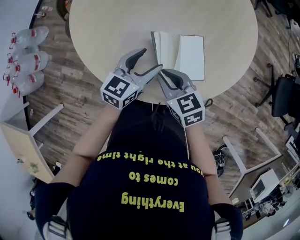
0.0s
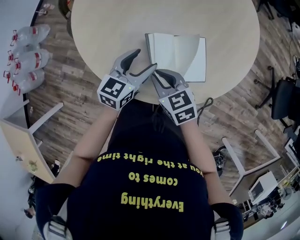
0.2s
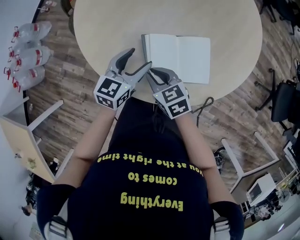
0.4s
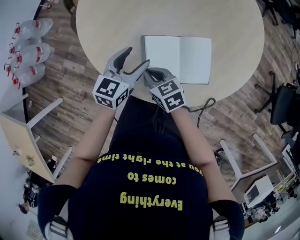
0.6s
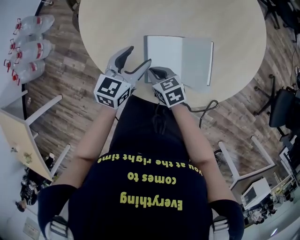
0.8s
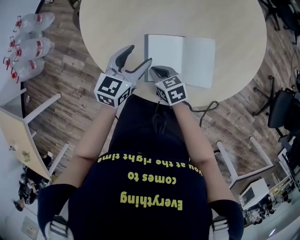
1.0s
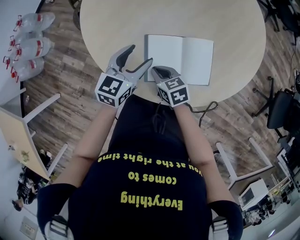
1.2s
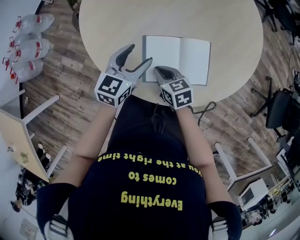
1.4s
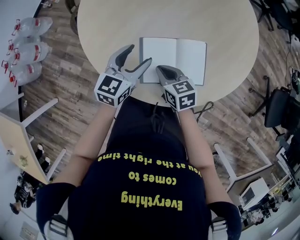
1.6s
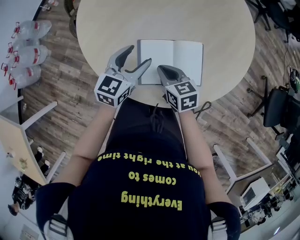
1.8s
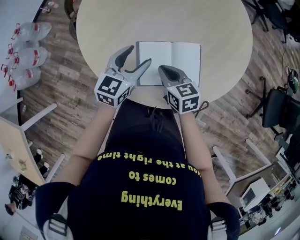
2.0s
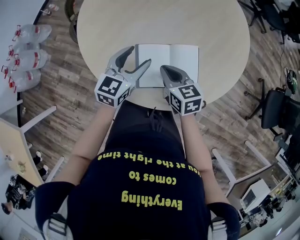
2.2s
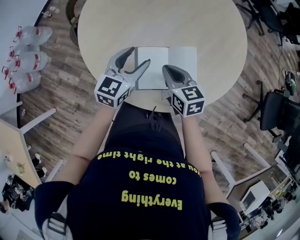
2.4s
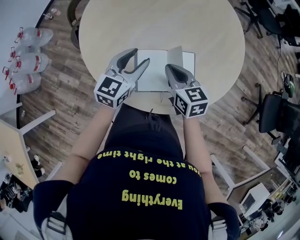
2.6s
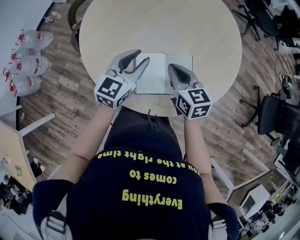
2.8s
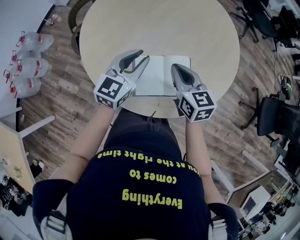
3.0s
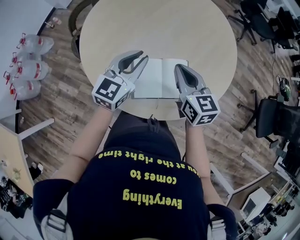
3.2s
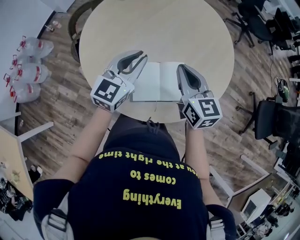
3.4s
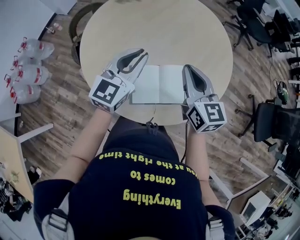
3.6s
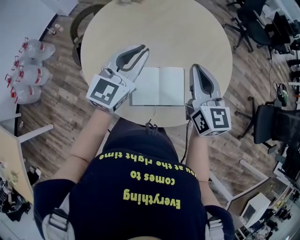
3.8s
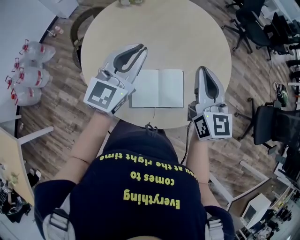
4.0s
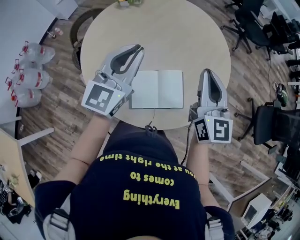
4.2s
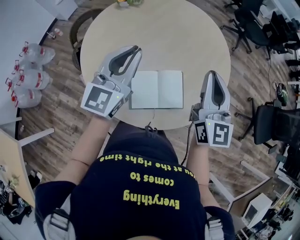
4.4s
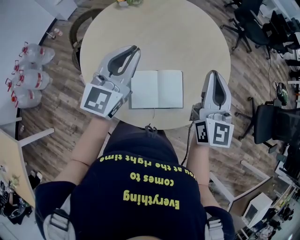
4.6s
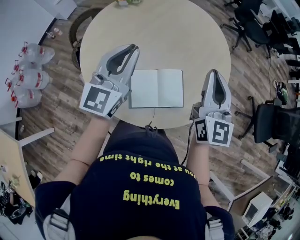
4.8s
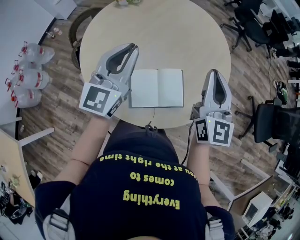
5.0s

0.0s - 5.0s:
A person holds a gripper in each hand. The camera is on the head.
0.0s - 1.6s: The right gripper goes roughly 5 cm downward. The left gripper is displaced to the left by about 5 cm.
1.6s - 3.4s: The right gripper is displaced upward and to the right by roughly 25 cm, and rotates roughly 30 degrees. Meanwhile the left gripper moves upward, approximately 15 cm, and closes its fingers.
3.4s - 5.0s: The right gripper moves upward and to the right, roughly 15 cm, and changes its angle by approximately 30 degrees. Meanwhile the left gripper goes some 10 cm upward.

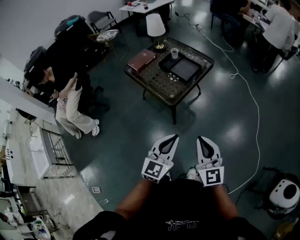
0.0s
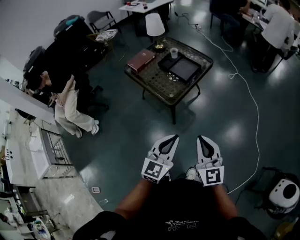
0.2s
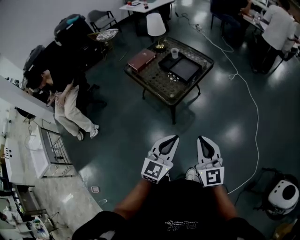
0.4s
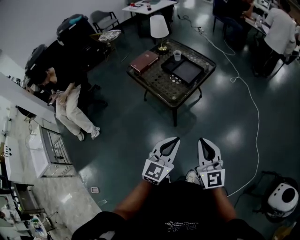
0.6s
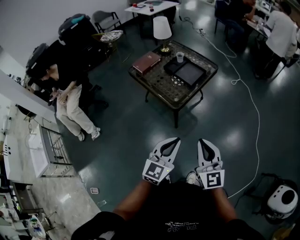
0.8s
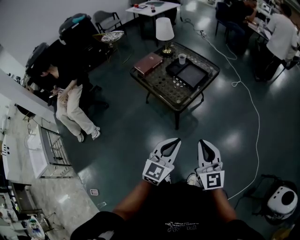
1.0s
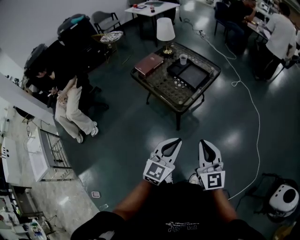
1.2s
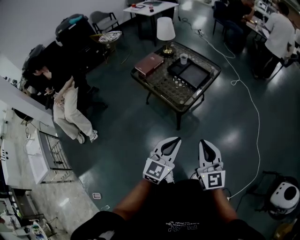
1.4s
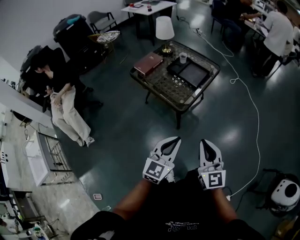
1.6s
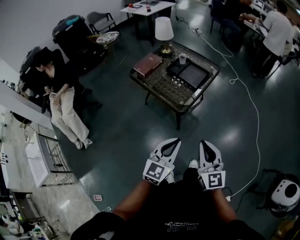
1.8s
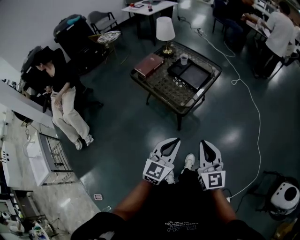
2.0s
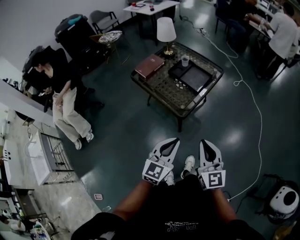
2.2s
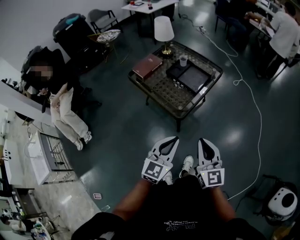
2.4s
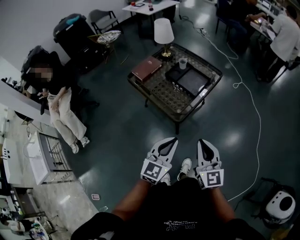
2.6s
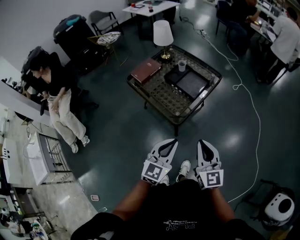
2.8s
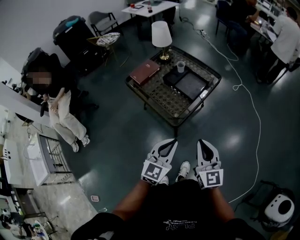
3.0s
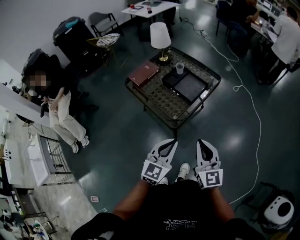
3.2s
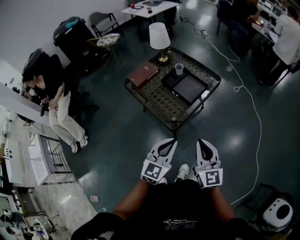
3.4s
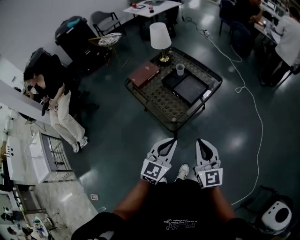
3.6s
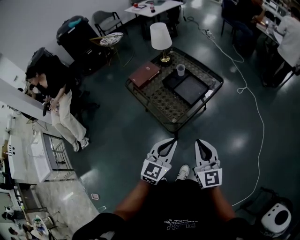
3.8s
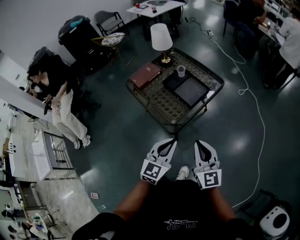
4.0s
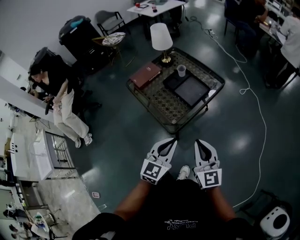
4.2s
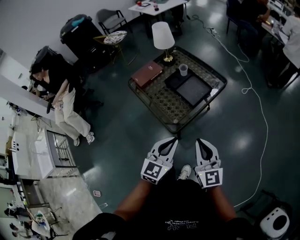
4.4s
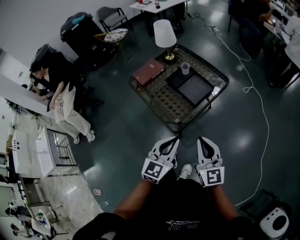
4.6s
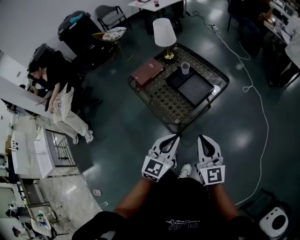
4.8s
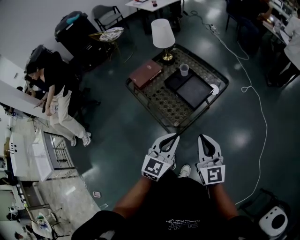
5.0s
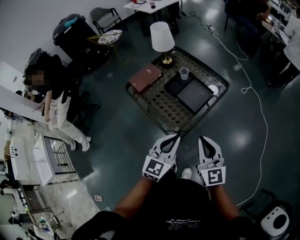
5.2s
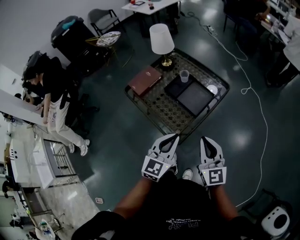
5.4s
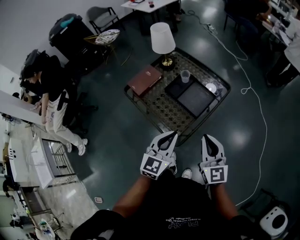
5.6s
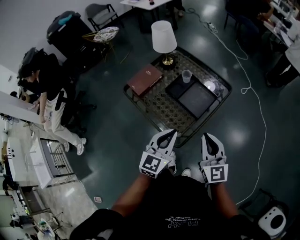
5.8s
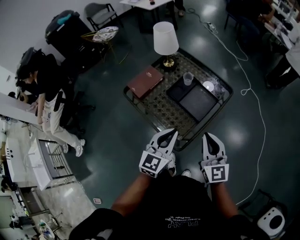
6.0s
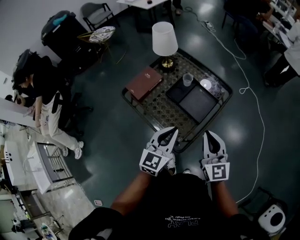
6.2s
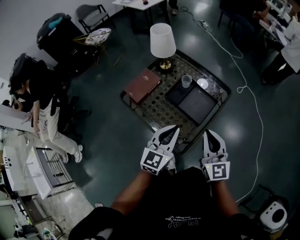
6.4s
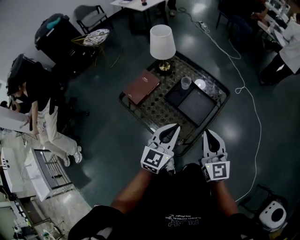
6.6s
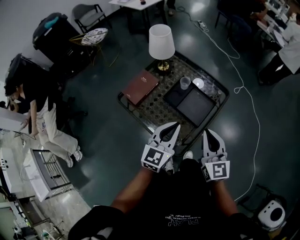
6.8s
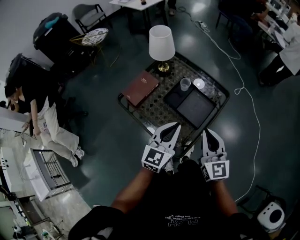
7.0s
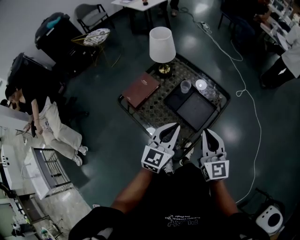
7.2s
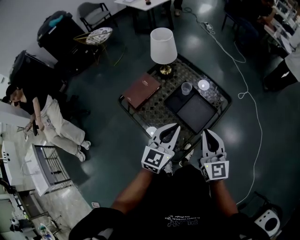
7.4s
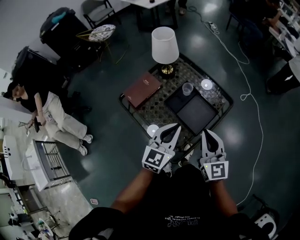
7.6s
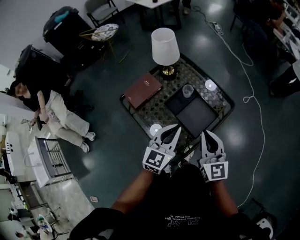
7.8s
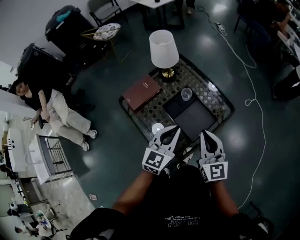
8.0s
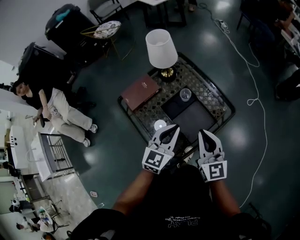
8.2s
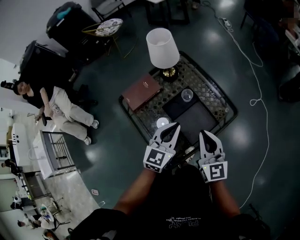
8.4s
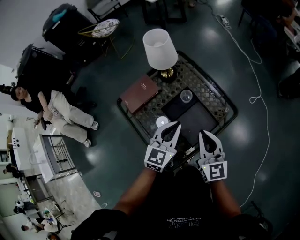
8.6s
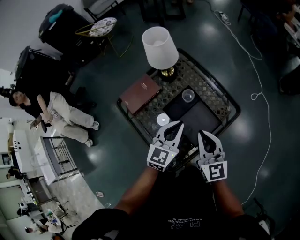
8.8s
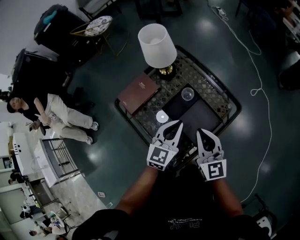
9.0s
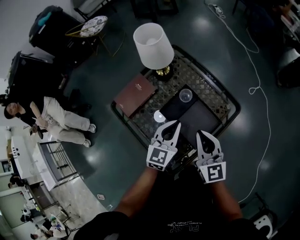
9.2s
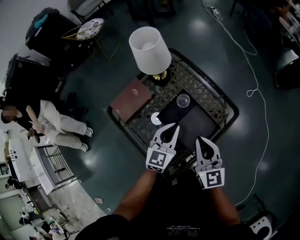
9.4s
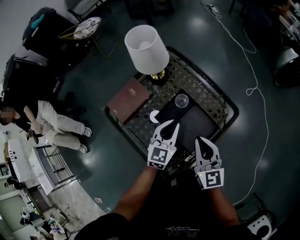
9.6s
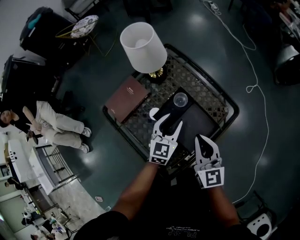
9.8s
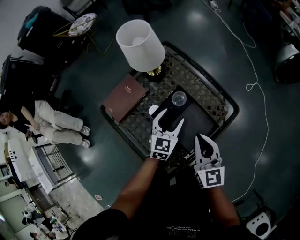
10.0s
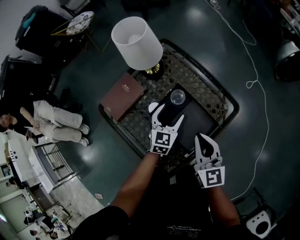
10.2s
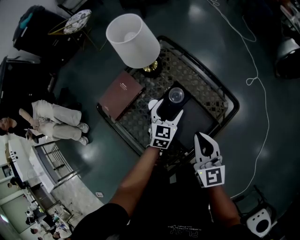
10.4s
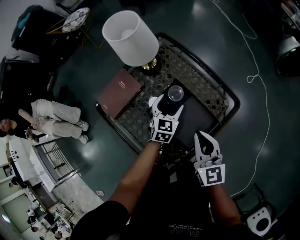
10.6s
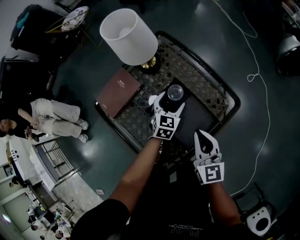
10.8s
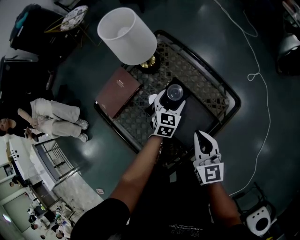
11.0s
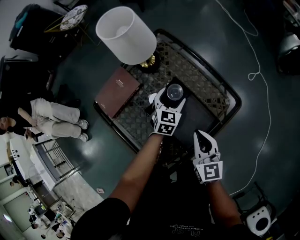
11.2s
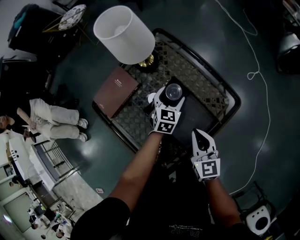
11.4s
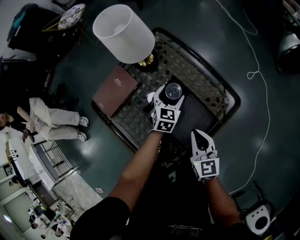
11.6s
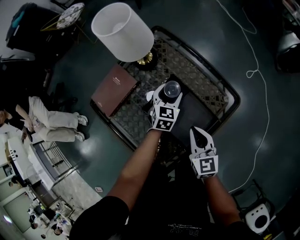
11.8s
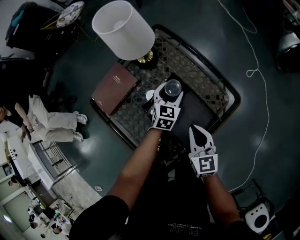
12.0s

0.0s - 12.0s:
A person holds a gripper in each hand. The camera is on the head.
0.0s - 1.6s: Both grippers travel together to the left, roughly 10 cm.
1.6s - 3.0s: Both grippers move forward, roughly 10 cm.
3.0s - 4.4s: The two grippers go roughly 5 cm forward.
4.4s - 6.0s: The right gripper moves forward, about 15 cm; the left gripper is displaced forward and to the left by about 20 cm.
6.0s - 7.6s: The two grippers go about 10 cm forward.
7.6s - 9.0s: Both grippers travel together forward and downward, some 15 cm.
9.0s - 10.4s: The right gripper shifts approximately 5 cm downward, while the left gripper is displaced downward and forward by approximately 20 cm, and opens its fingers.
10.4s - 12.0s: The right gripper moves downward, some 10 cm; the left gripper changes place by approximately 5 cm.

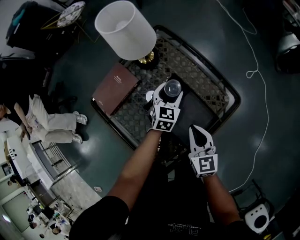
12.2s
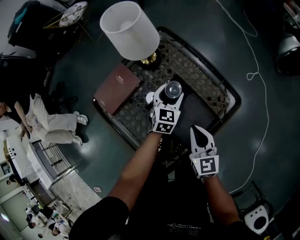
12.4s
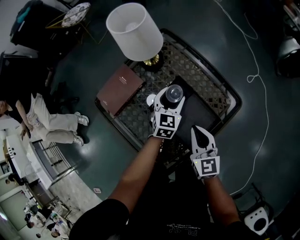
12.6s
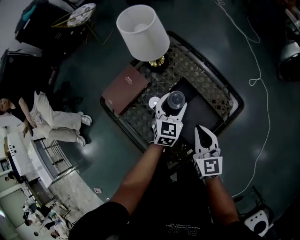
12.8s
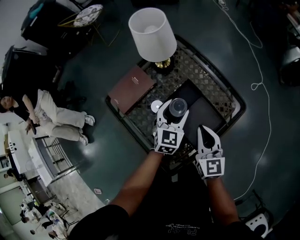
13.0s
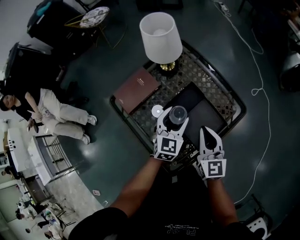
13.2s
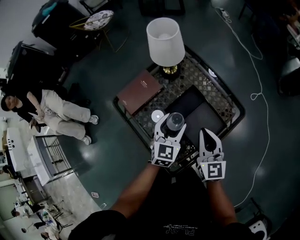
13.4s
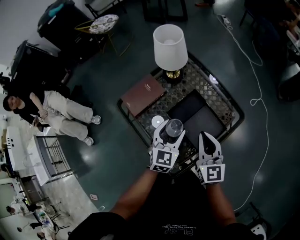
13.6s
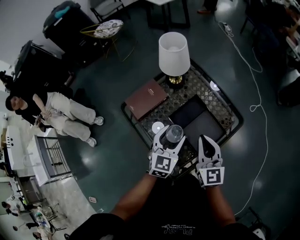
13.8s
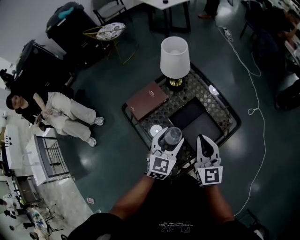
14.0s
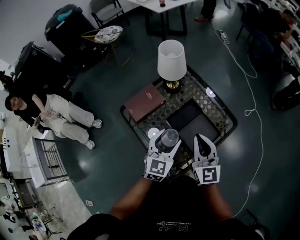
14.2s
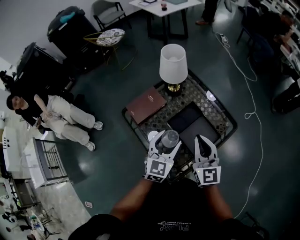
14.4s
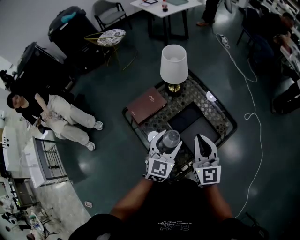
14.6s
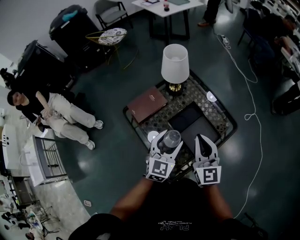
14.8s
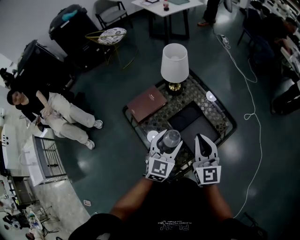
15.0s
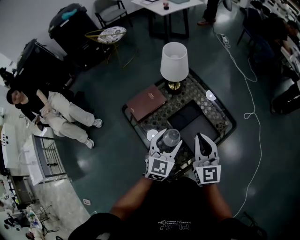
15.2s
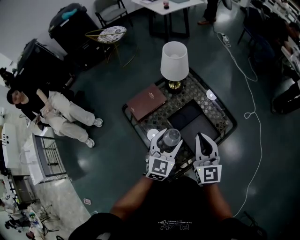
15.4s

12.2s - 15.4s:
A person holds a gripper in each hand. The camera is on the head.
12.2s - 13.8s: The left gripper goes approximately 25 cm upward, backward and to the left. The right gripper goes approximately 15 cm upward.
13.8s - 15.4s: The two grippers go roughly 5 cm upward.

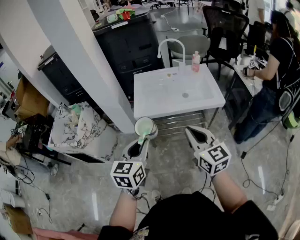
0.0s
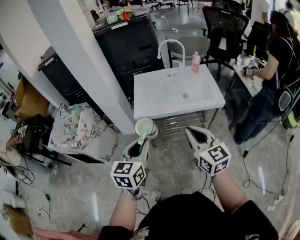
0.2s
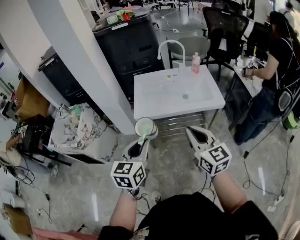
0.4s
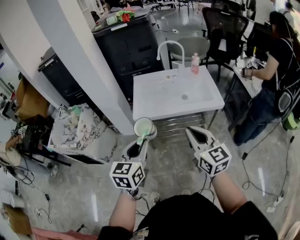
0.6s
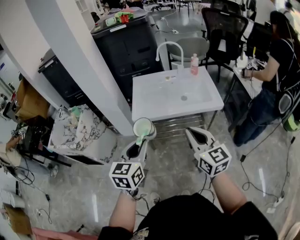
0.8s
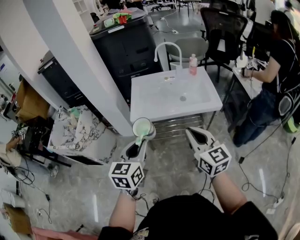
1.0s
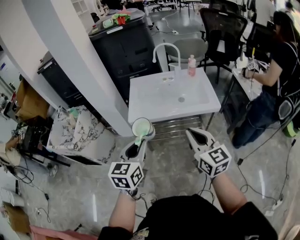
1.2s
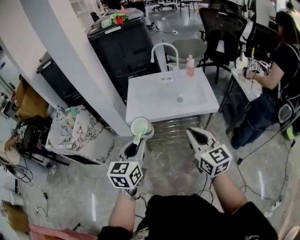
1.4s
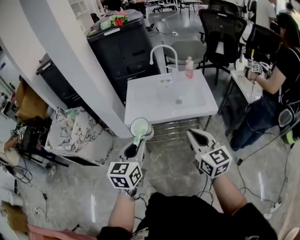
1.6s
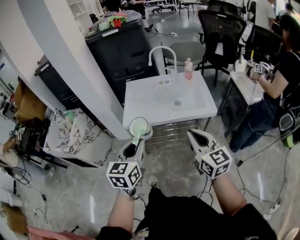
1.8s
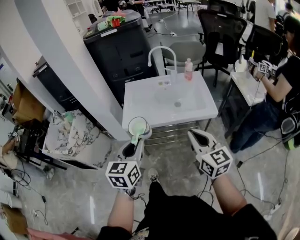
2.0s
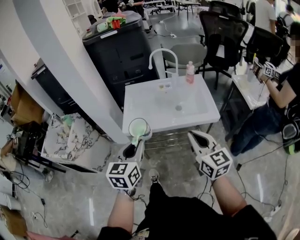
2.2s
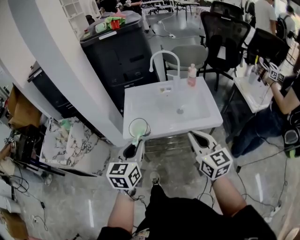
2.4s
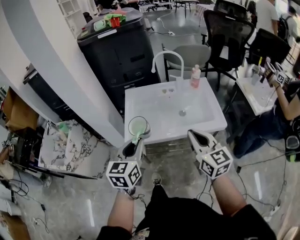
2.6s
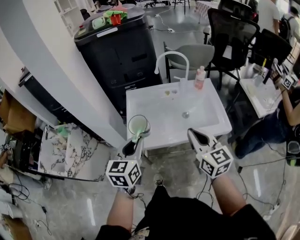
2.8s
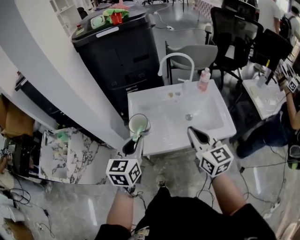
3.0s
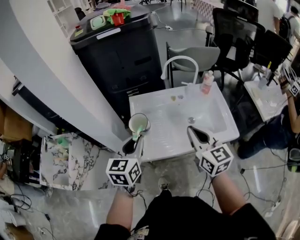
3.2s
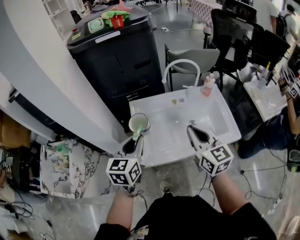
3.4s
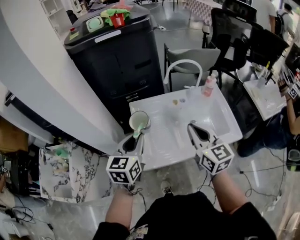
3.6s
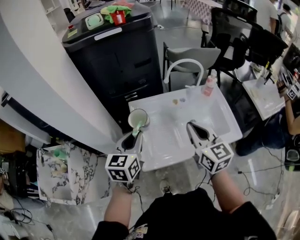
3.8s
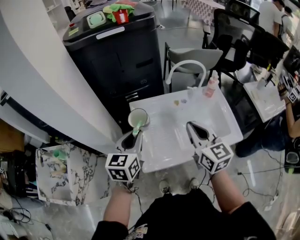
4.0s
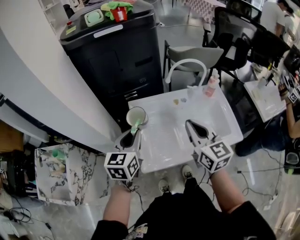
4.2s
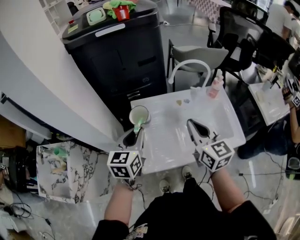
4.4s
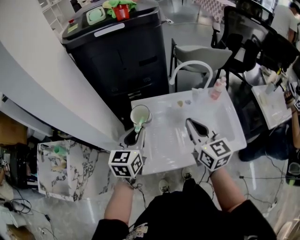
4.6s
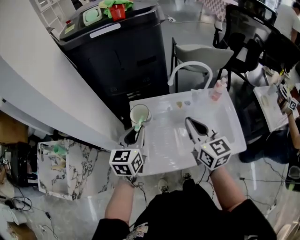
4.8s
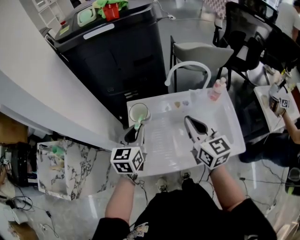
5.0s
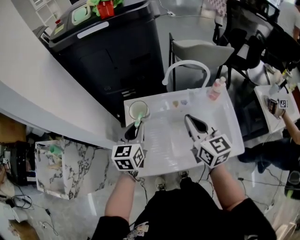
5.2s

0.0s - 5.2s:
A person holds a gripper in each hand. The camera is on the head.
0.0s - 1.8s: Both grippers move to the right, roughly 10 cm.
1.8s - 3.4s: The left gripper goes approximately 35 cm forward. Meanwhile the right gripper heads forward and to the left, covering roughly 35 cm.
3.4s - 5.2s: The left gripper moves forward and downward, about 20 cm, while the right gripper shifts approximately 15 cm forward.
